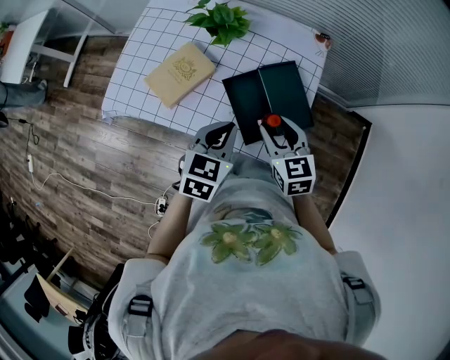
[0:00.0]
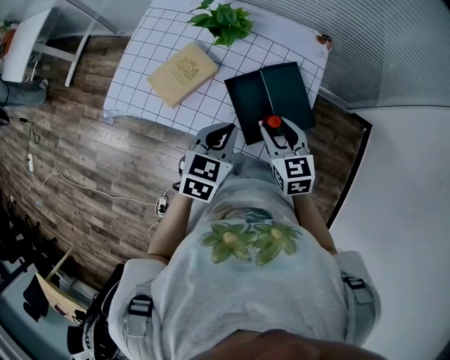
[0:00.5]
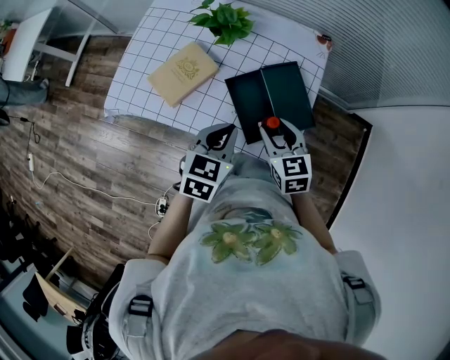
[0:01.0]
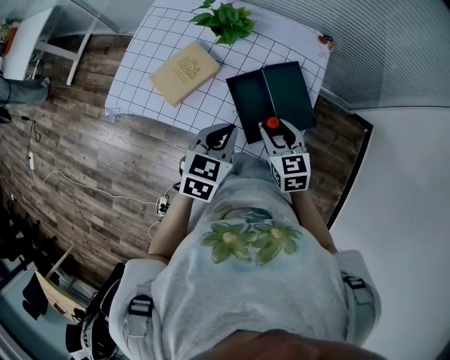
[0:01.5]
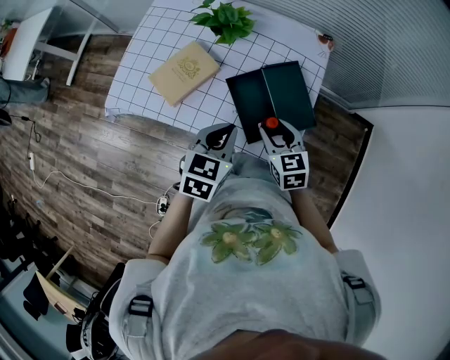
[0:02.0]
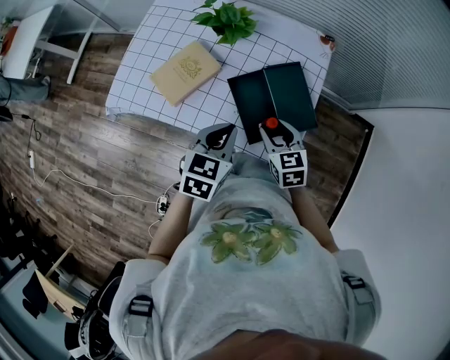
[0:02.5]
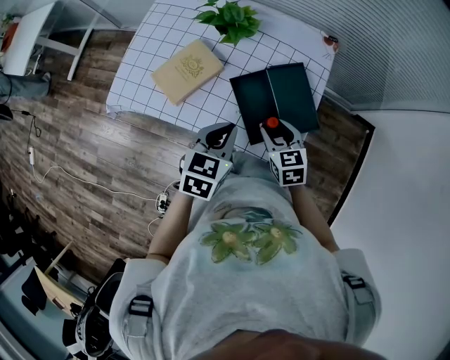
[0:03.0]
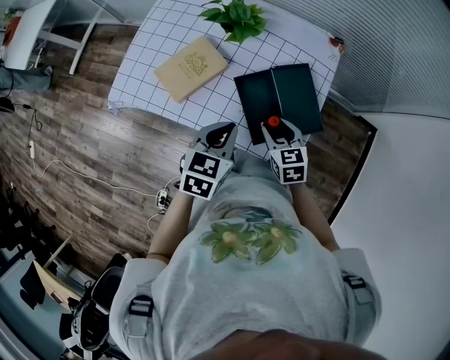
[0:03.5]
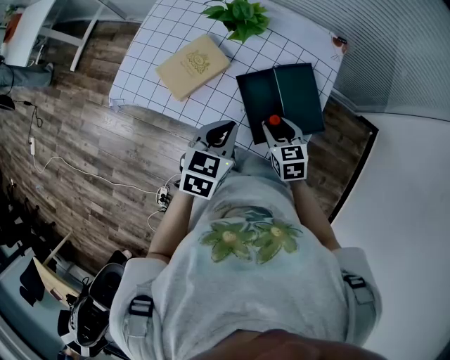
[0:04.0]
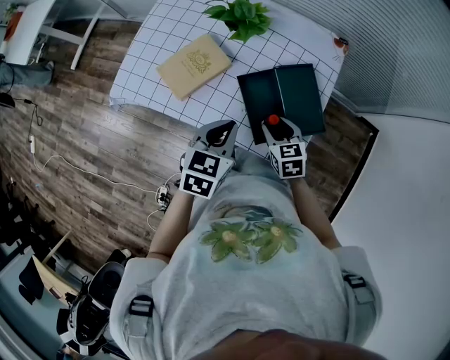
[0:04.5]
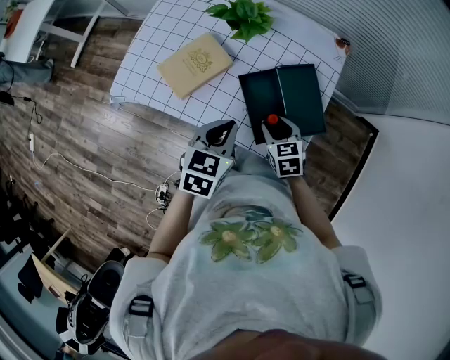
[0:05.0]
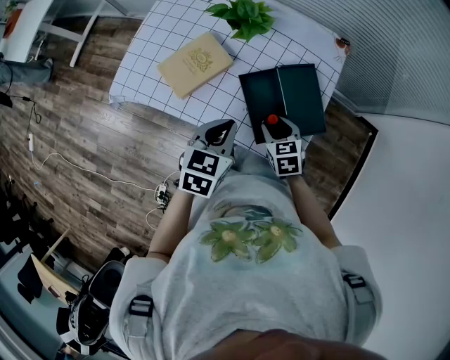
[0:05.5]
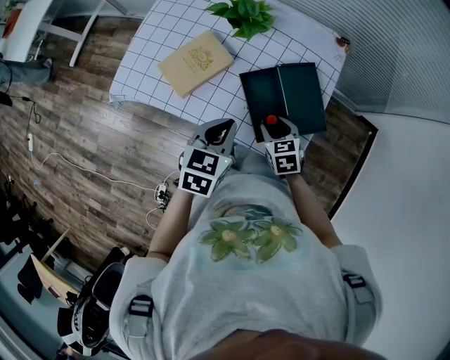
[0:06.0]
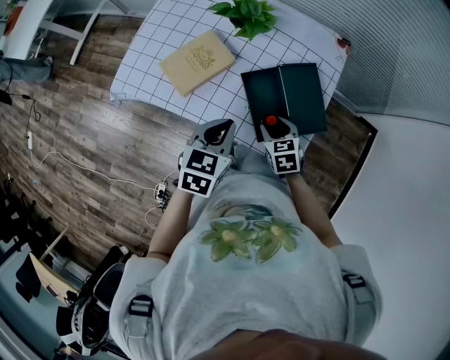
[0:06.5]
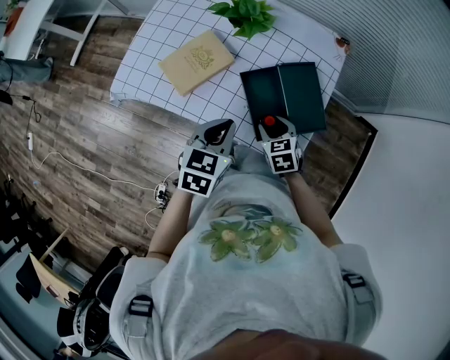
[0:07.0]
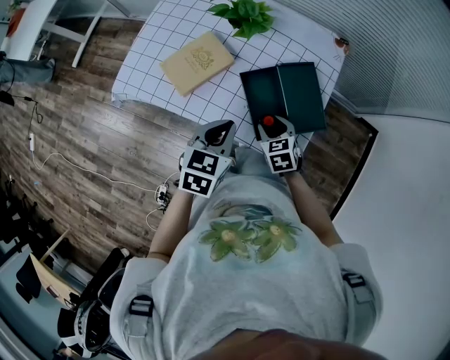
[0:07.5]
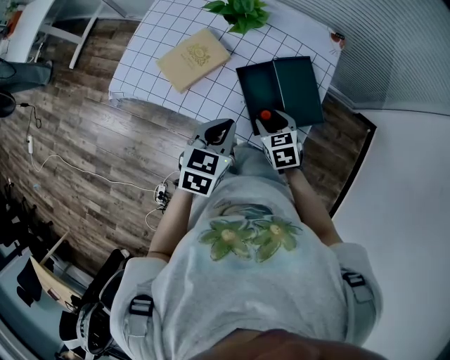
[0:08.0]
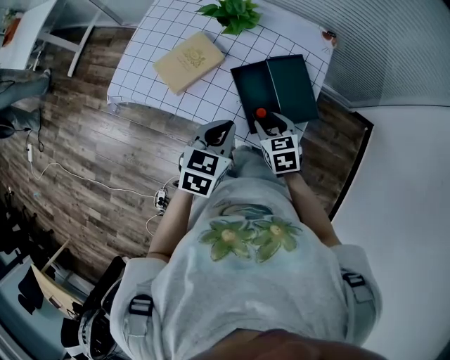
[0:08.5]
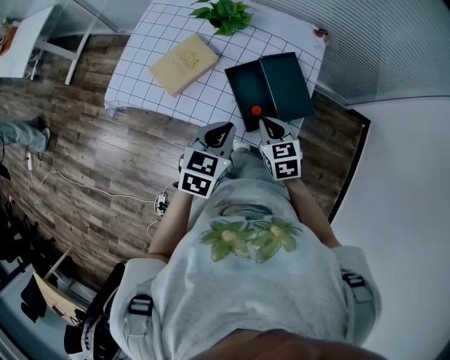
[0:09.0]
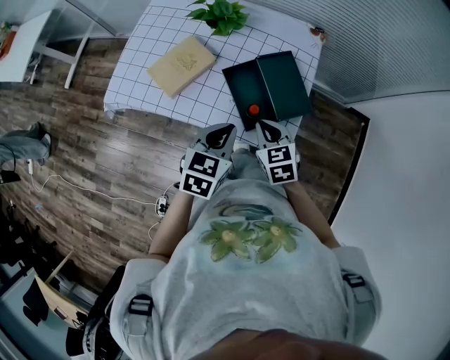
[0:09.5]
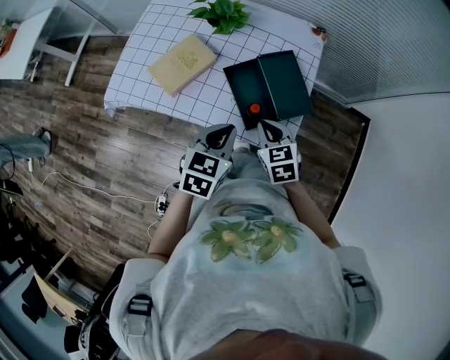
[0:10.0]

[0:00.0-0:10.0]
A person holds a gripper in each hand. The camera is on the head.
0:00.0 to 0:02.0: The grippers stay close to where they were, moving slightly.
0:02.0 to 0:04.0: The right gripper travels downward by roughly 5 cm.
0:04.0 to 0:08.0: The grippers make only small movements.
0:08.0 to 0:10.0: The right gripper moves upward, about 5 cm, and closes its fingers.

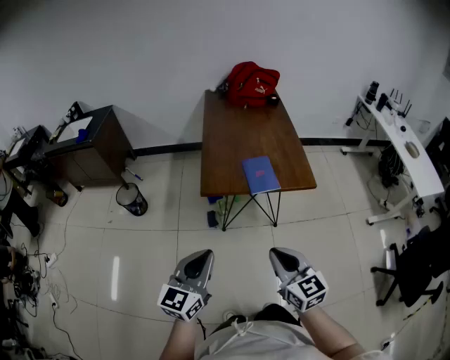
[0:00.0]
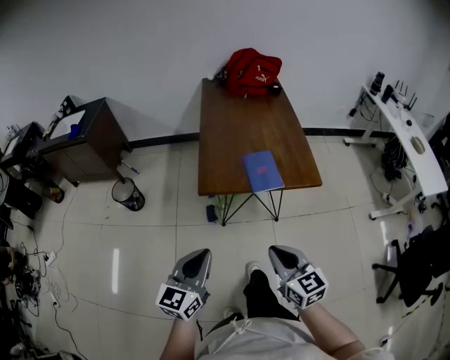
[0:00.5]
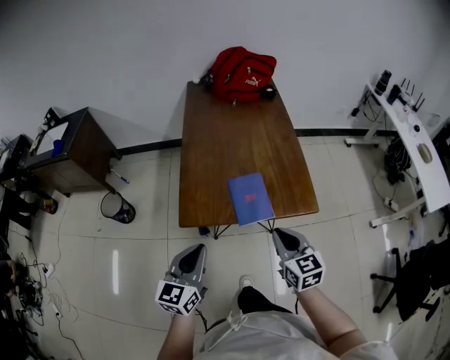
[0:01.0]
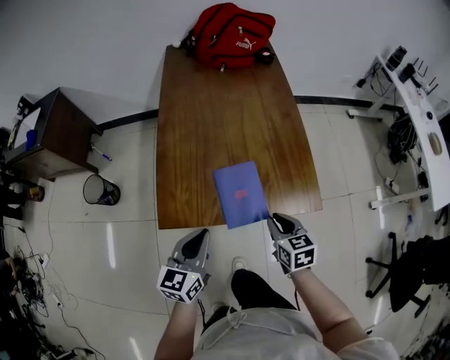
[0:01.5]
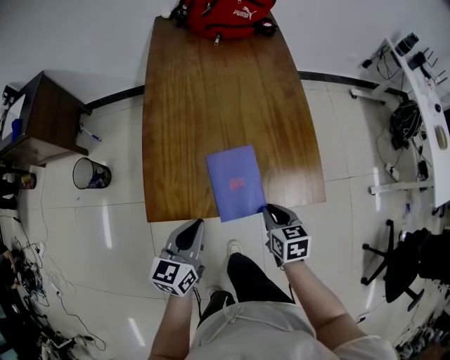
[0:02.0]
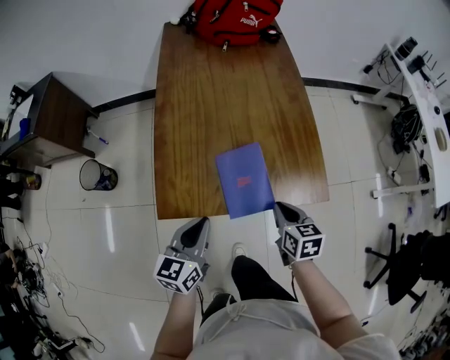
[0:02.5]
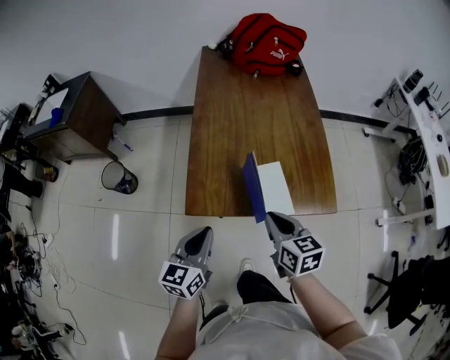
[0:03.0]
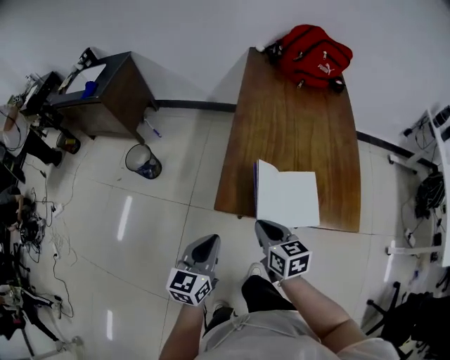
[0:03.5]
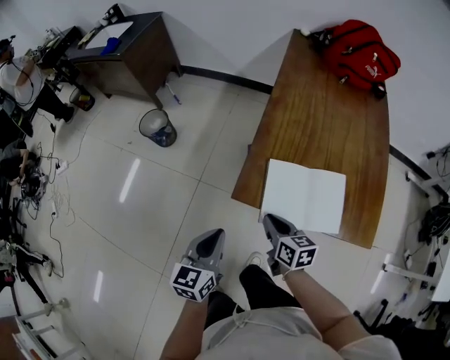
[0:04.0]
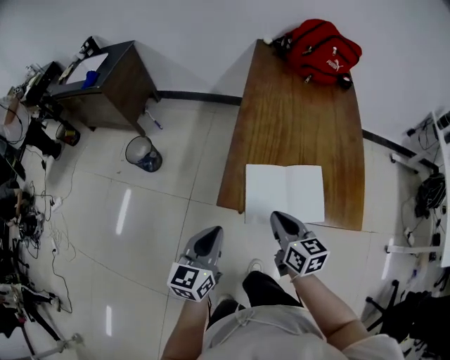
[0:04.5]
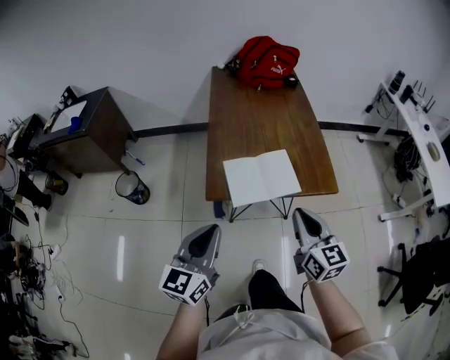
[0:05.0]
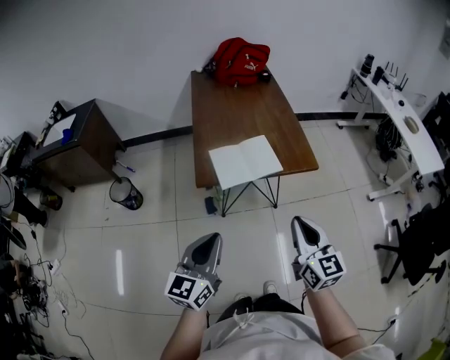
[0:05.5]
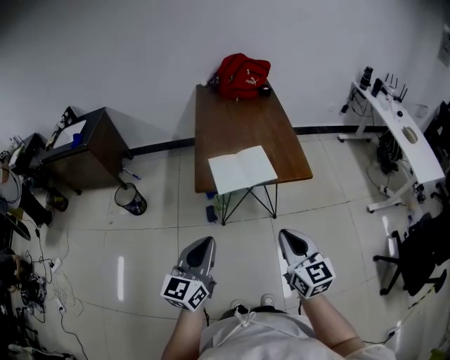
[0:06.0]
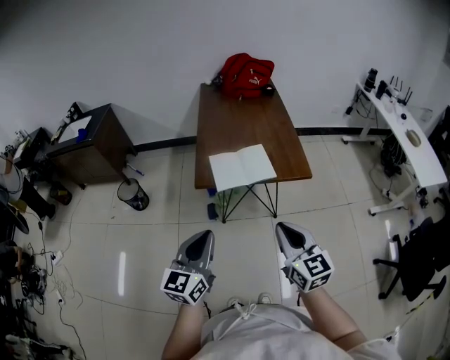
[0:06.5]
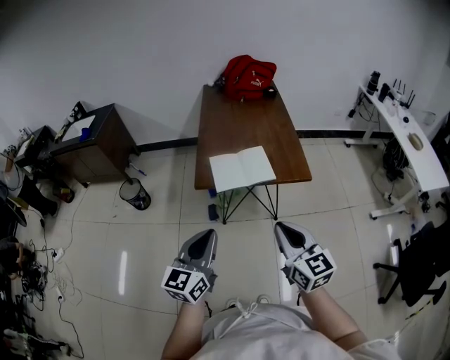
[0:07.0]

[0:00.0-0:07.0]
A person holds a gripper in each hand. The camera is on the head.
0:00.0 to 0:02.0: The grippers both shift forward and downward by roughly 40 cm. The right gripper tilts its fingers about 30 degrees downward; the left gripper swivels some 20 degrees.
0:02.0 to 0:03.5: The right gripper travels to the left and upward by roughly 25 cm, and swivels approximately 30 degrees, while the left gripper moves to the left, backward and upward, some 15 cm.
0:03.5 to 0:05.0: The left gripper heads upward, covering some 15 cm, and changes its angle by roughly 20 degrees, while the right gripper ends up roughly 20 cm from where it was, and changes its angle by roughly 30 degrees.
0:05.0 to 0:07.0: The left gripper shifts roughly 15 cm backward and to the right. Meanwhile the right gripper travels backward by some 20 cm.

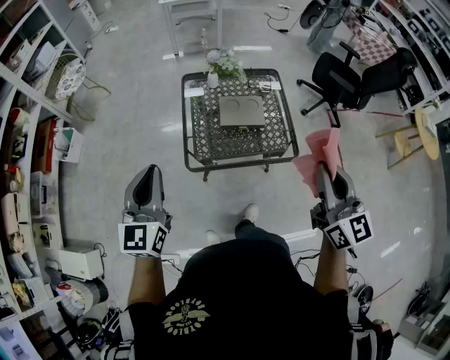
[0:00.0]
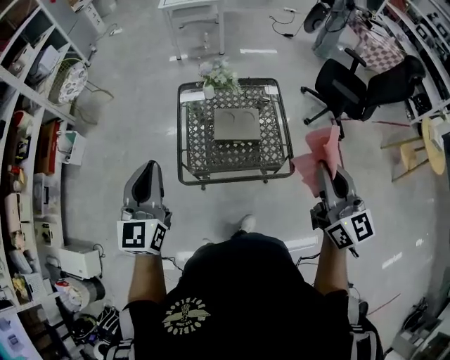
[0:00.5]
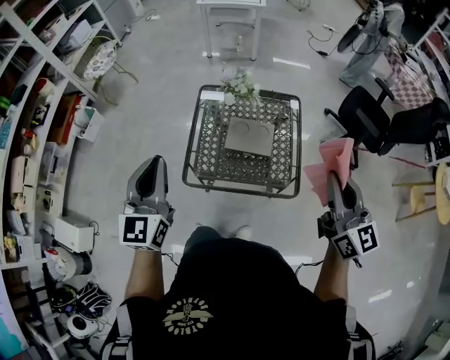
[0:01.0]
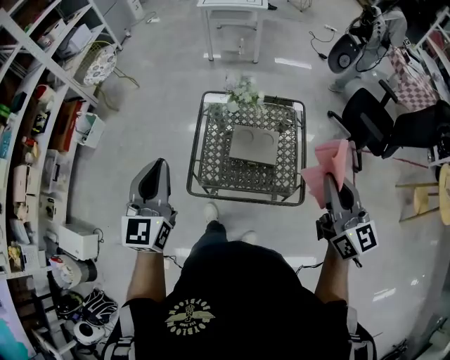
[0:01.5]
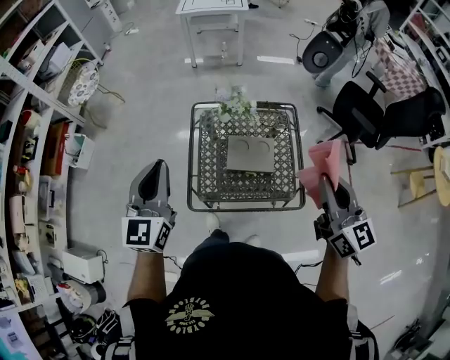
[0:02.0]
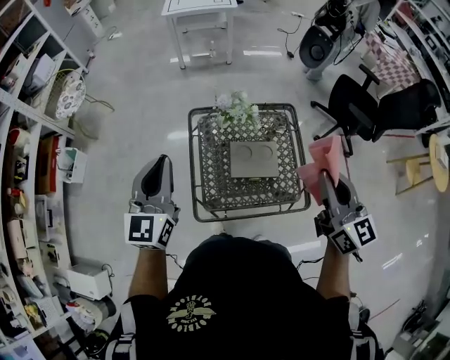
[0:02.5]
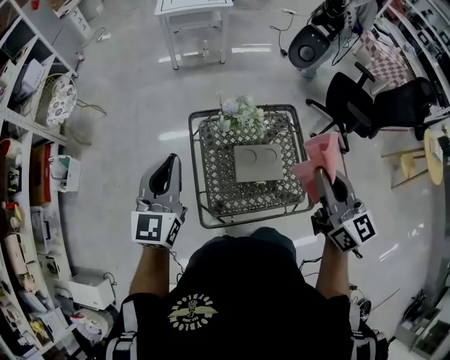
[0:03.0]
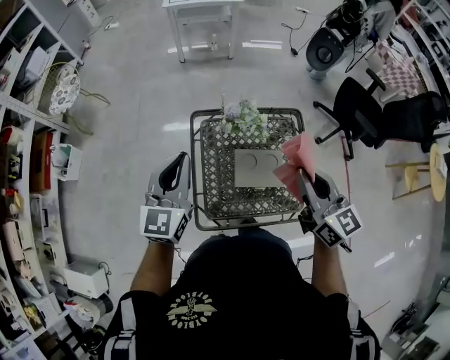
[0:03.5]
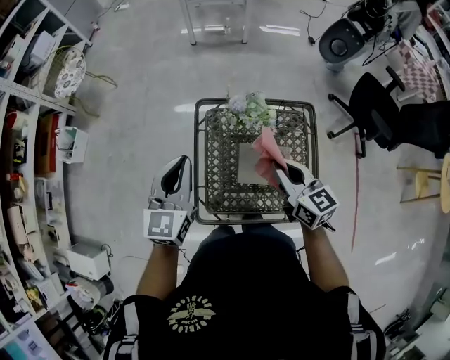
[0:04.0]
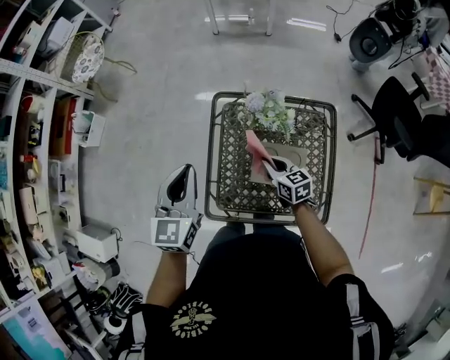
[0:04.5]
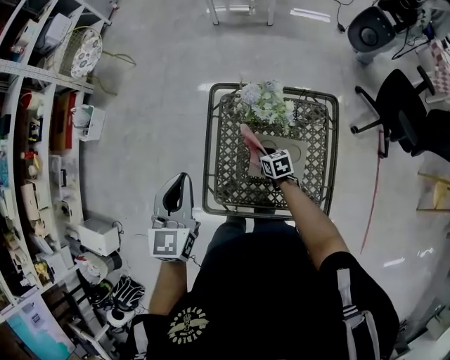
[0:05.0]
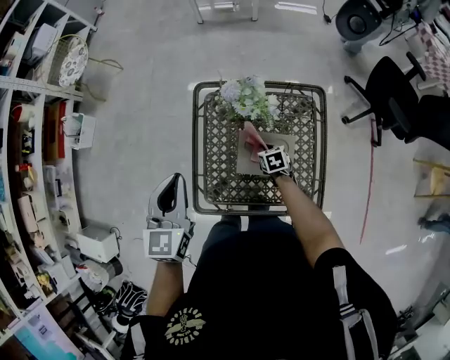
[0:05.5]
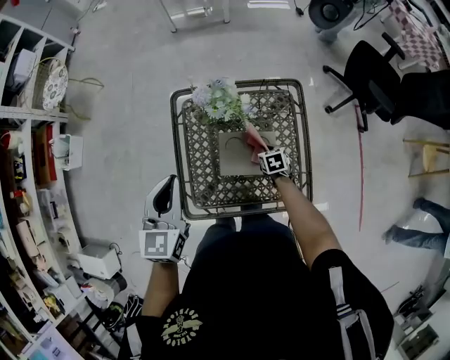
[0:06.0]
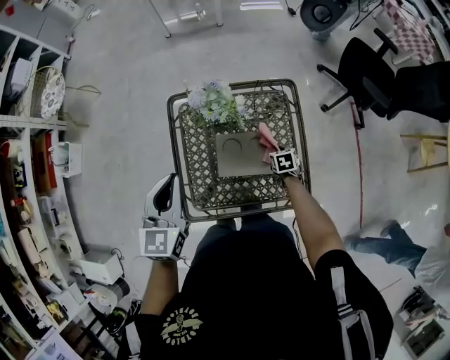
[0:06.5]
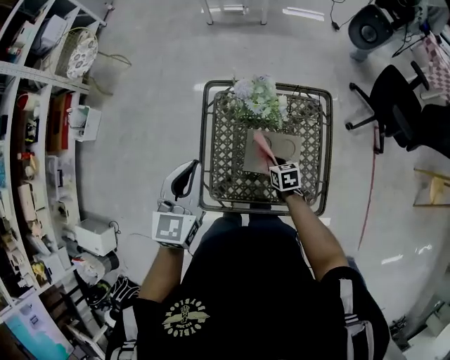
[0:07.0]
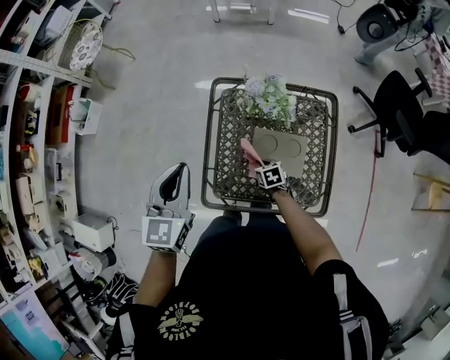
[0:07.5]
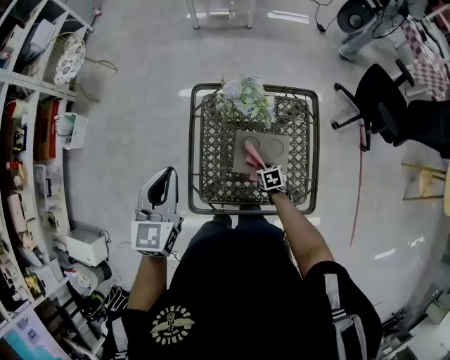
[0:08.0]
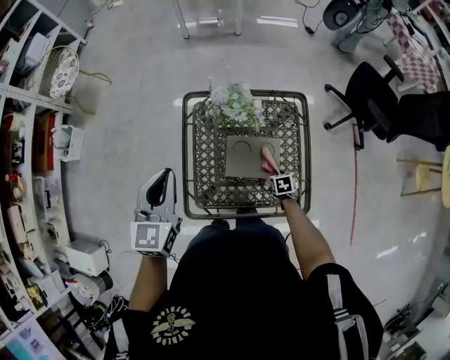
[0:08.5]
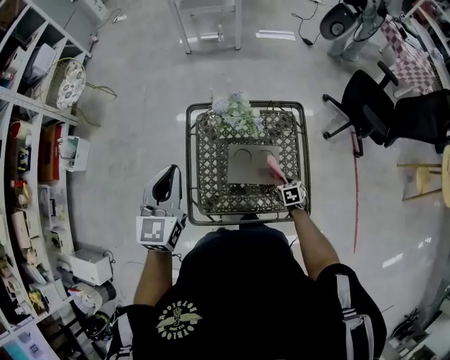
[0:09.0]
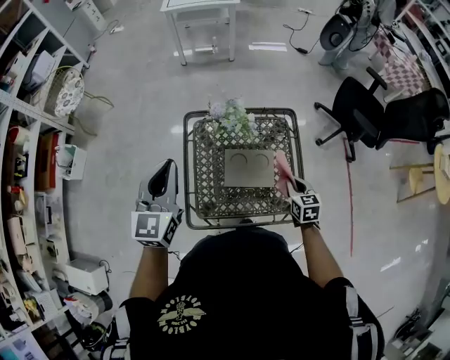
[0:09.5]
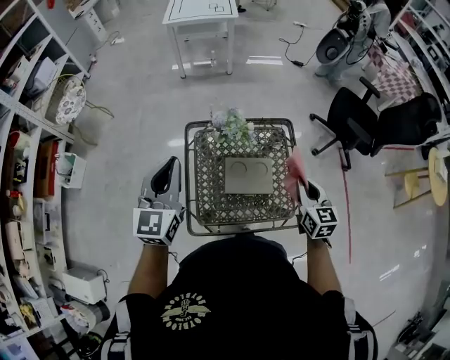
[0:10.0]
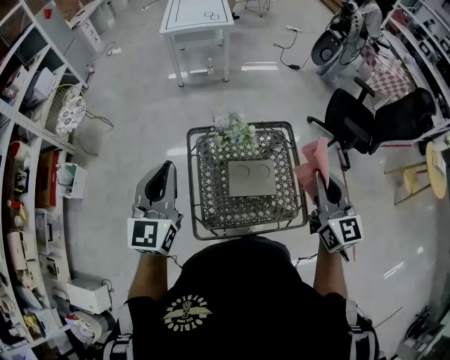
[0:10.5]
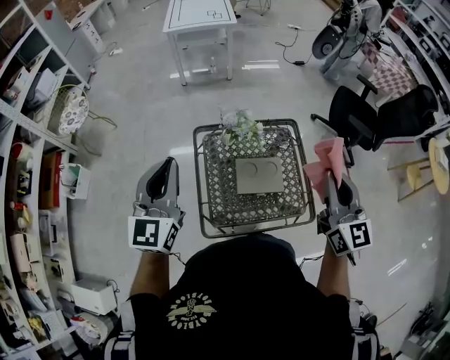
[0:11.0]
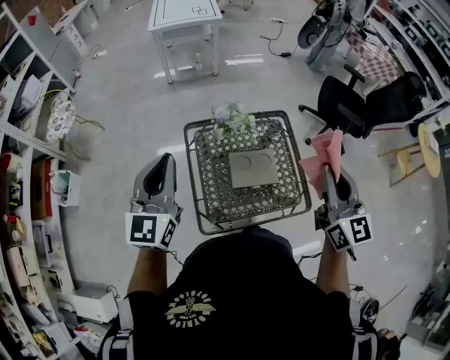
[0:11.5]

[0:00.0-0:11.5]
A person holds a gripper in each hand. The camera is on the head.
0:00.0 to 0:02.0: The right gripper moves forward, roughly 20 cm. The left gripper heads forward and to the right, covering roughly 20 cm.
0:02.0 to 0:04.0: The right gripper shifts approximately 30 cm forward, downward and to the left, and turns by some 20 degrees. The left gripper moves forward and downward, about 20 cm.
0:04.0 to 0:06.0: The right gripper moves downward, some 35 cm, and tilts its fingers about 50 degrees downward; the left gripper travels downward and to the right by some 10 cm.
0:06.0 to 0:07.5: The right gripper moves to the left, roughly 15 cm; the left gripper is displaced to the left by approximately 10 cm.
0:07.5 to 0:09.5: The right gripper goes approximately 30 cm to the right and upward, and rotates approximately 30 degrees; the left gripper goes roughly 5 cm upward.
0:09.5 to 0:11.5: The right gripper is displaced upward by approximately 35 cm, and points its fingers some 40 degrees further upward, while the left gripper shifts approximately 10 cm upward and to the left.
